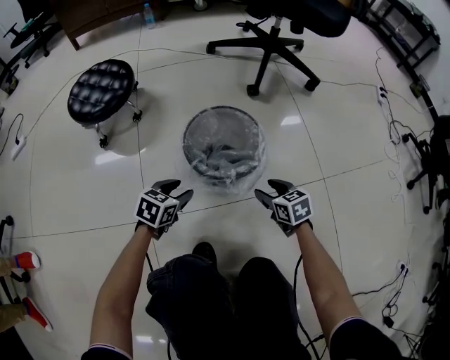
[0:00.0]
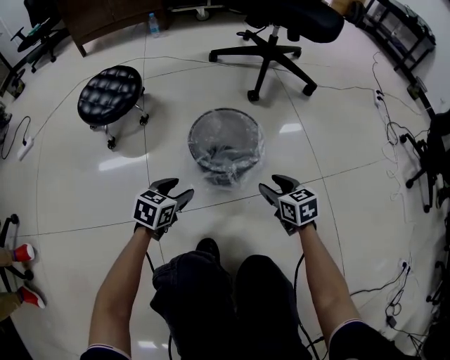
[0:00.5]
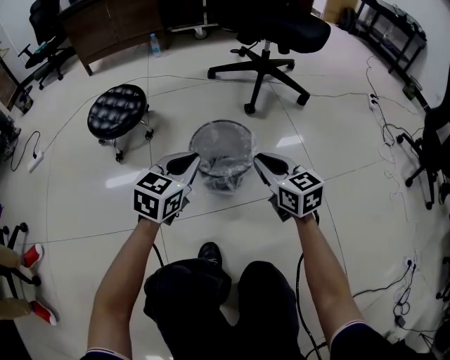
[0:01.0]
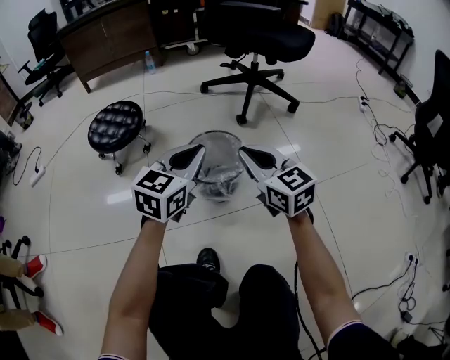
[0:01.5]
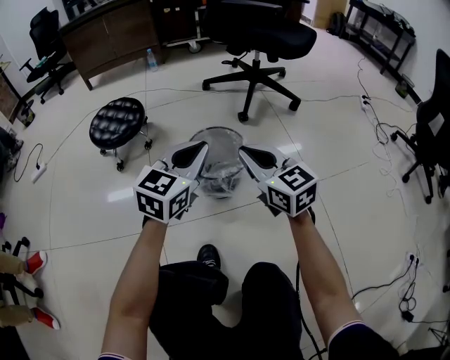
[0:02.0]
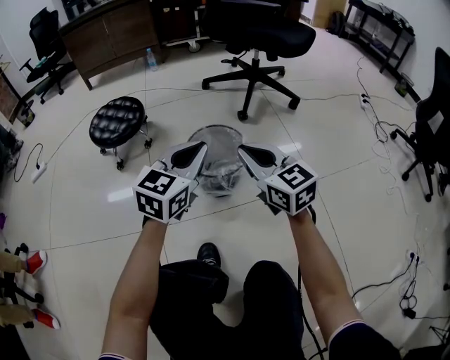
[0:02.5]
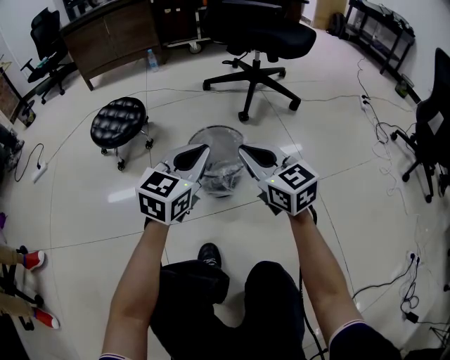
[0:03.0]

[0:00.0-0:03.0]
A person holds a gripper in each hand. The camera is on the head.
0:00.0 to 0:01.5: The grippers both shift upward by roughly 30 cm. The right gripper points its fingers some 40 degrees further upward, and closes its fingers. The left gripper points its fingers about 30 degrees further upward, and closes up.
0:01.5 to 0:03.0: The grippers move only a little.

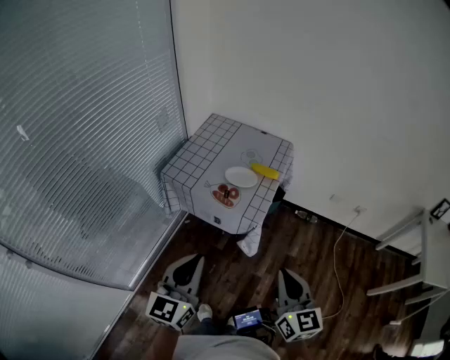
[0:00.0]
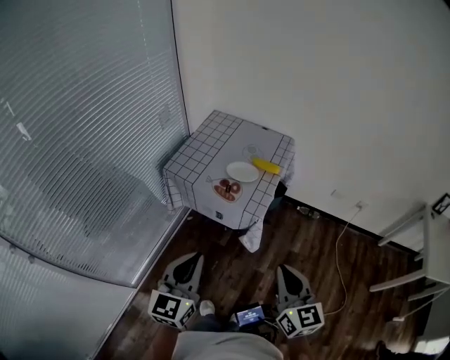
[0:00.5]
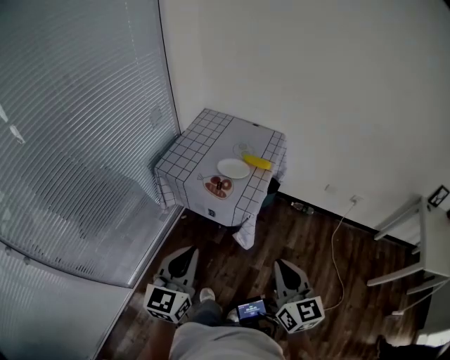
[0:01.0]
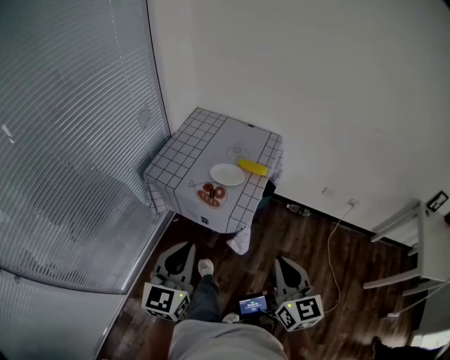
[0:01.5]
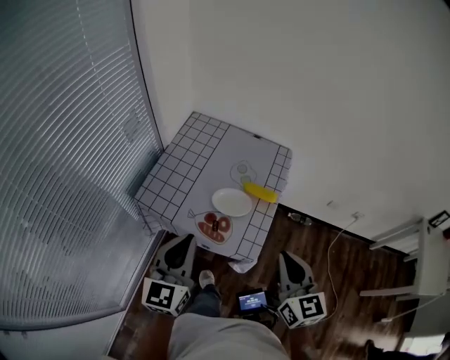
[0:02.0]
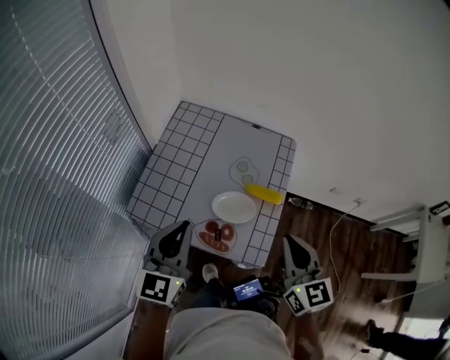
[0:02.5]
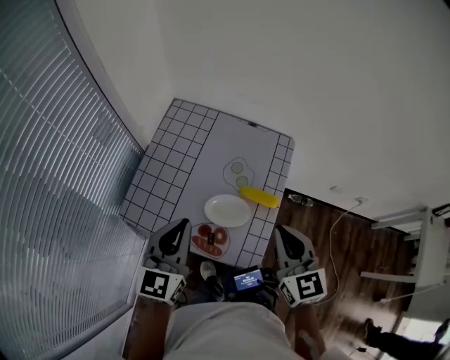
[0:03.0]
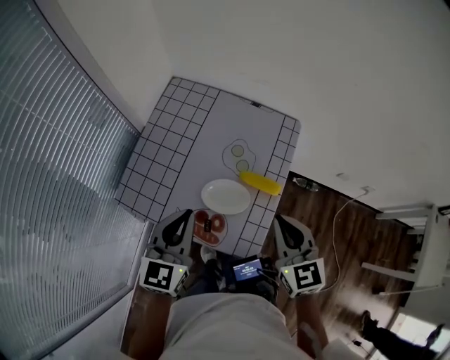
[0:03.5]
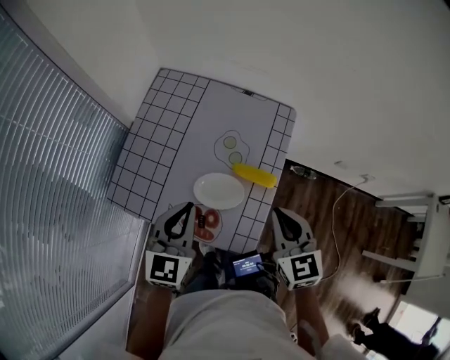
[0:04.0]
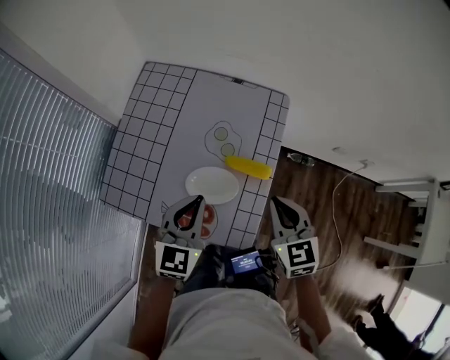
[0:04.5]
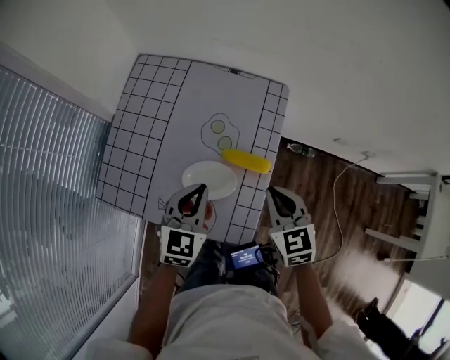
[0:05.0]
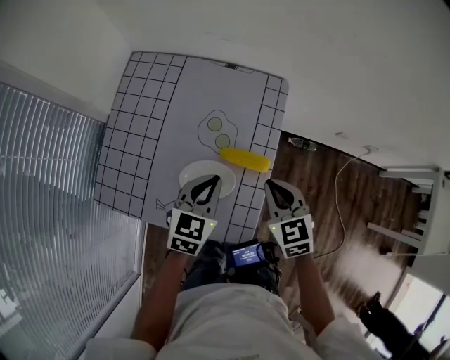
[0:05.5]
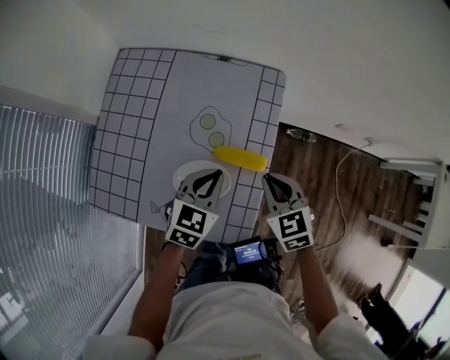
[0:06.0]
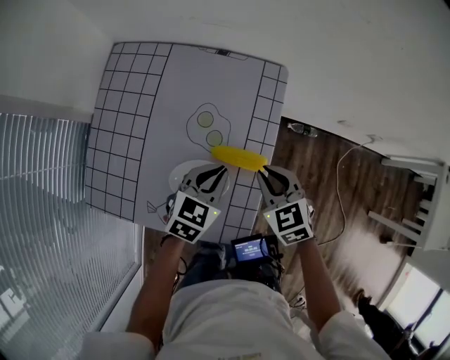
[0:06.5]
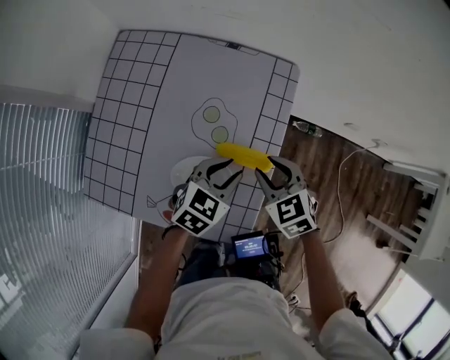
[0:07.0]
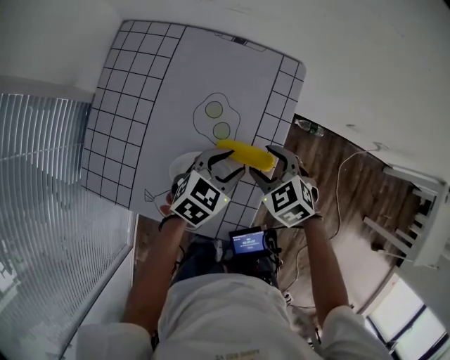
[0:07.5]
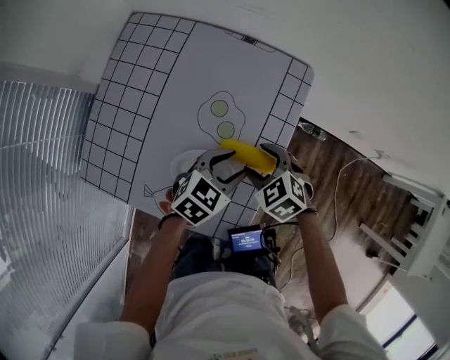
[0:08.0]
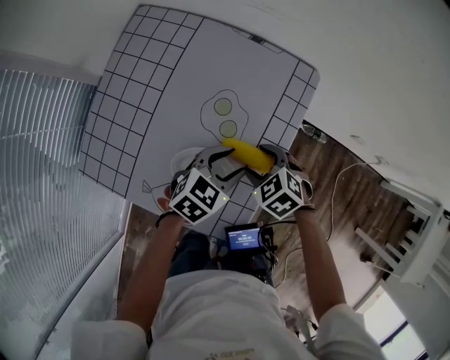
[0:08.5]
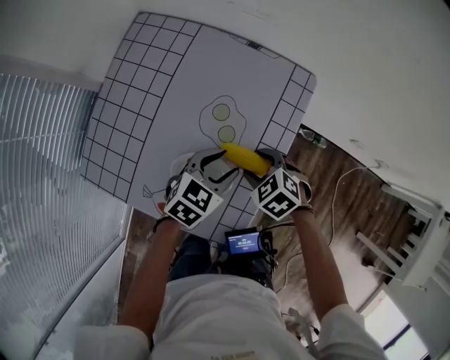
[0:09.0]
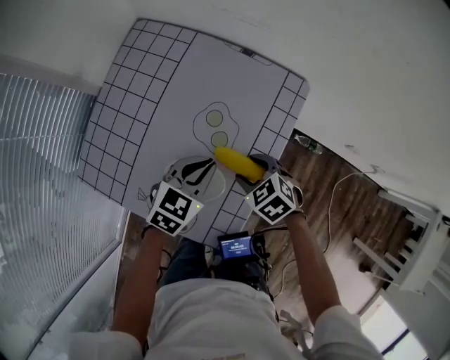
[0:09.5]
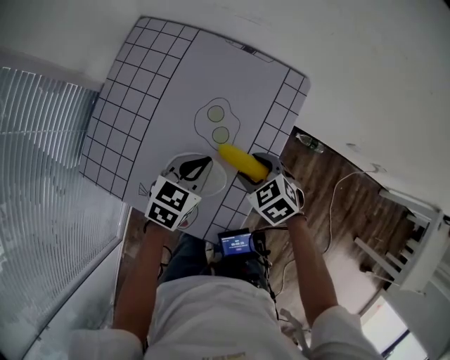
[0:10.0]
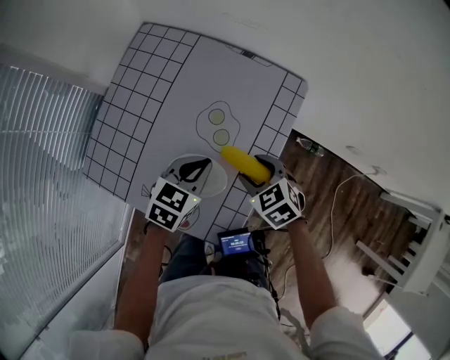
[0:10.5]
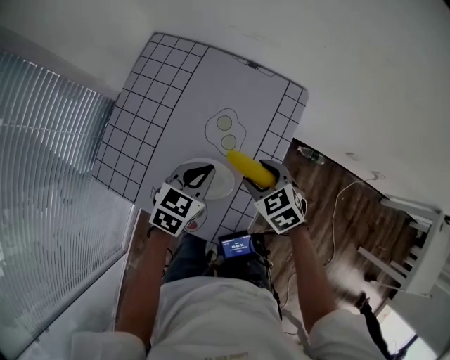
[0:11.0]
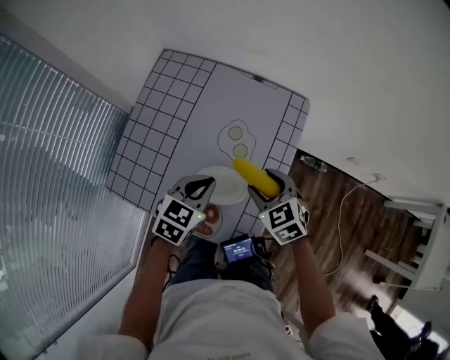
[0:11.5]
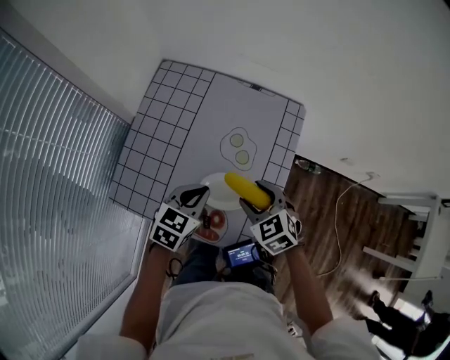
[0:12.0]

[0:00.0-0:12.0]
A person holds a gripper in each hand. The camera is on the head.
0:00.0 to 0:02.0: Both grippers move forward, approximately 25 cm.
0:02.0 to 0:04.0: Both grippers travel together forward and downward, roughly 20 cm.
0:04.0 to 0:06.0: The right gripper moves downward and forward, some 15 cm; the left gripper is displaced downward, to the right and forward by some 20 cm, and turns by some 30 degrees.
0:06.0 to 0:08.0: Both grippers move downward, roughly 5 cm. The left gripper opens its fingers. The right gripper swivels some 30 degrees, and opens.
0:08.0 to 0:10.0: The left gripper is displaced to the left by roughly 5 cm, and closes.
0:10.0 to 0:12.0: The right gripper travels upward and to the left by about 10 cm. Meanwhile the left gripper shifts roughly 10 cm to the left and upward.

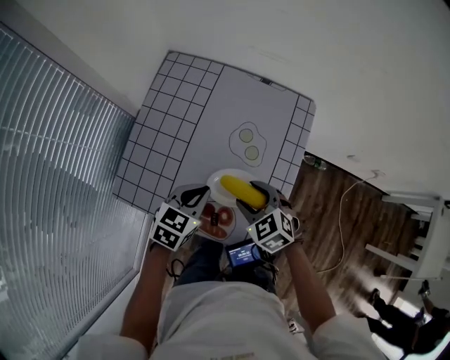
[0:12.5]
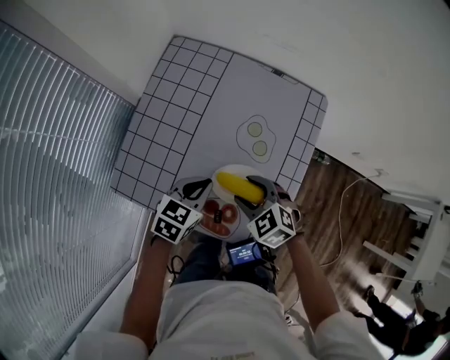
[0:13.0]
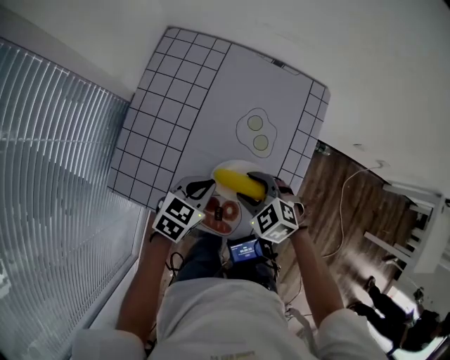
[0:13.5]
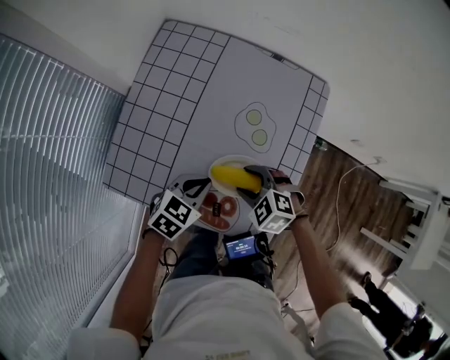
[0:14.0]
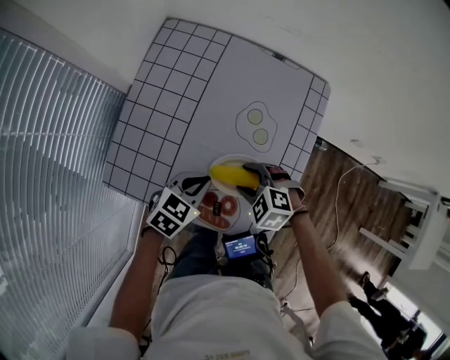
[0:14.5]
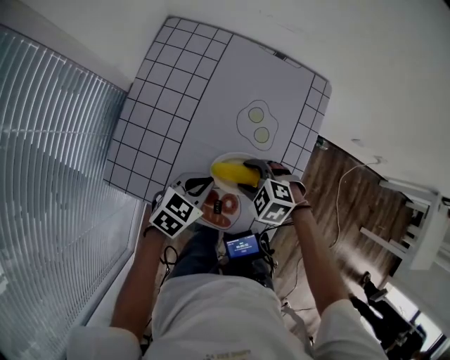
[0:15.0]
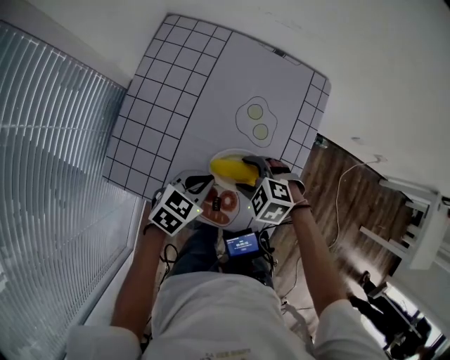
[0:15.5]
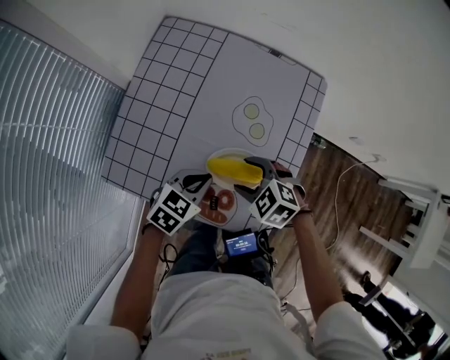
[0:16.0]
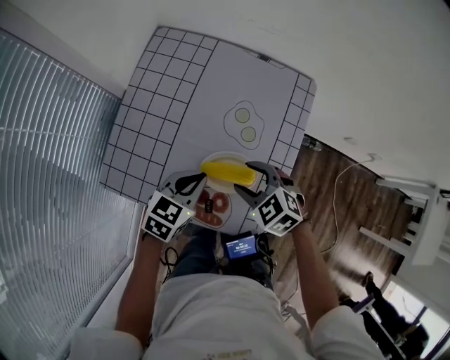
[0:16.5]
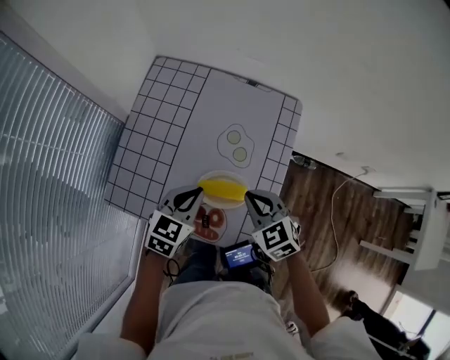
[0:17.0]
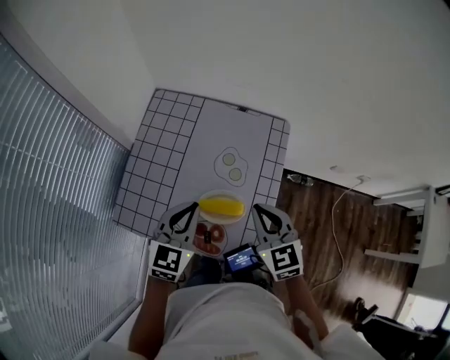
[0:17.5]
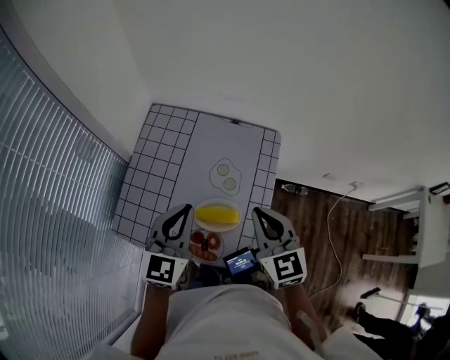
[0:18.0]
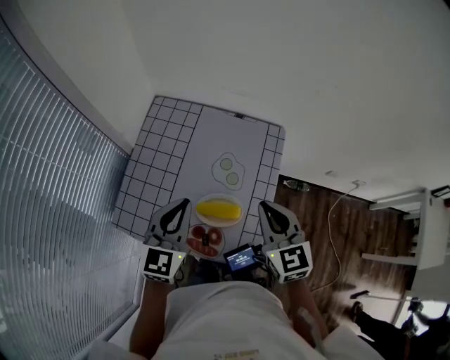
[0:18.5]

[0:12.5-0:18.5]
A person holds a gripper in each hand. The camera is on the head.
0:12.5 to 0:14.5: The grippers both shift downward by approximately 5 cm. The right gripper changes its angle by about 30 degrees.
0:14.5 to 0:16.5: The right gripper travels upward by approximately 5 cm.
0:16.5 to 0:18.5: Both grippers travel together upward, about 20 cm. The left gripper swivels approximately 30 degrees. The right gripper angles its fingers upward, by approximately 30 degrees, and closes.

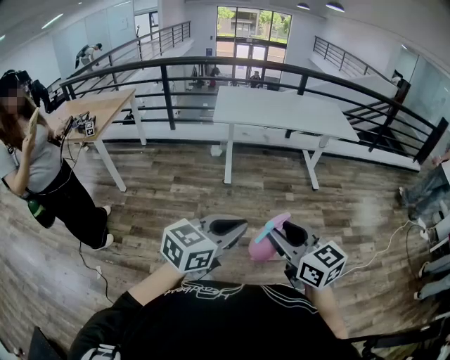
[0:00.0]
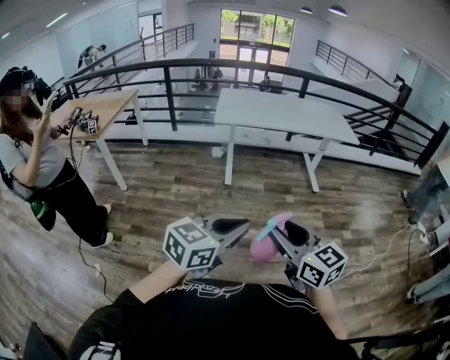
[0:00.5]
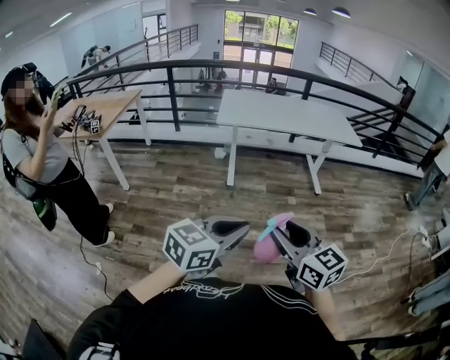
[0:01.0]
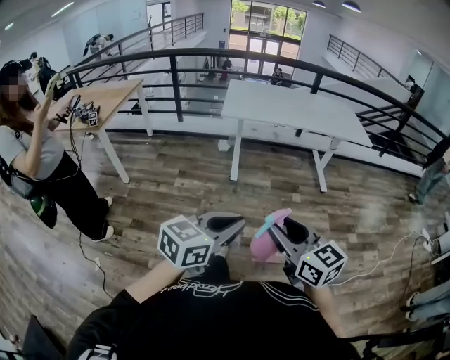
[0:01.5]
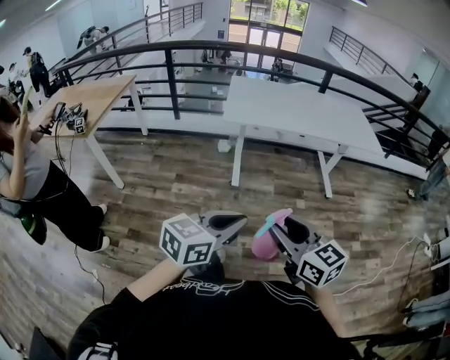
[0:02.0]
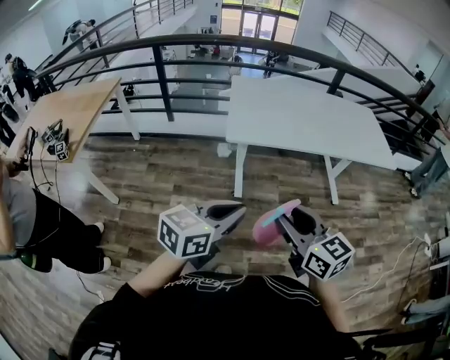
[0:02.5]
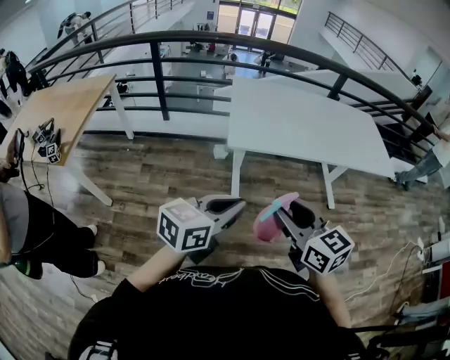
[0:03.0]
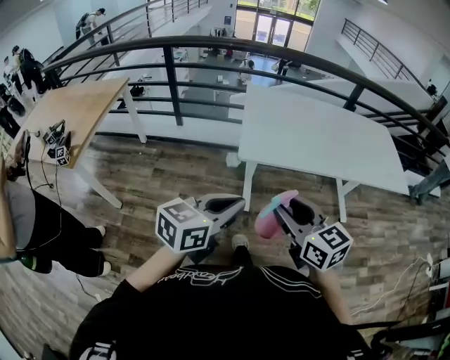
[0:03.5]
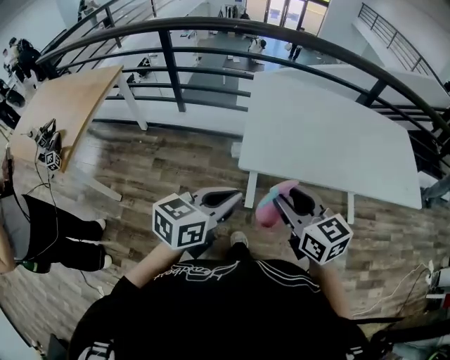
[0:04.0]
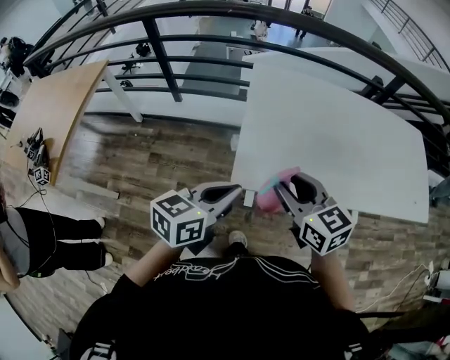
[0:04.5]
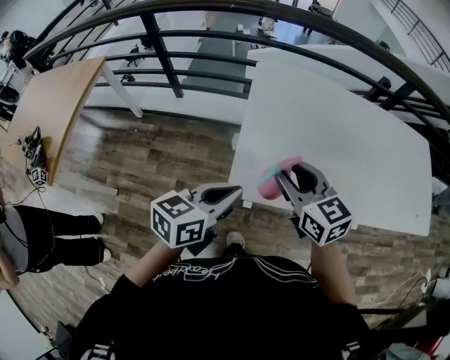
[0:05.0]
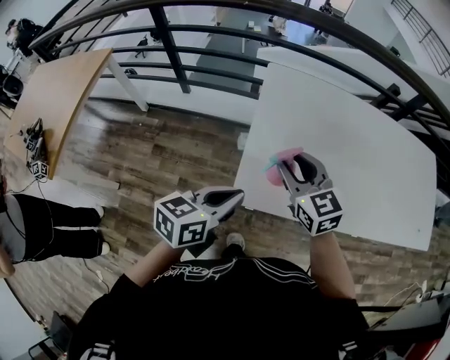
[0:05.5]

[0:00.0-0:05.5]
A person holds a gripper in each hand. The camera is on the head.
0:00.0 to 0:02.0: Both grippers move forward, approximately 20 cm.
0:02.0 to 0:03.5: The two grippers go roughly 40 cm forward and to the left.
0:03.5 to 0:05.5: The grippers both shift forward by approximately 40 cm.
